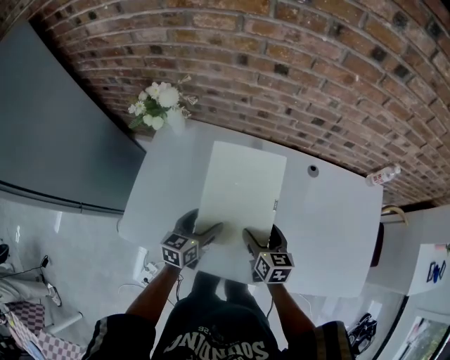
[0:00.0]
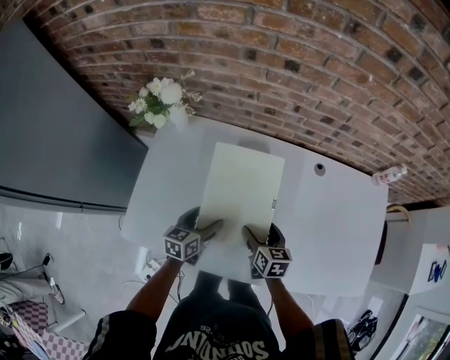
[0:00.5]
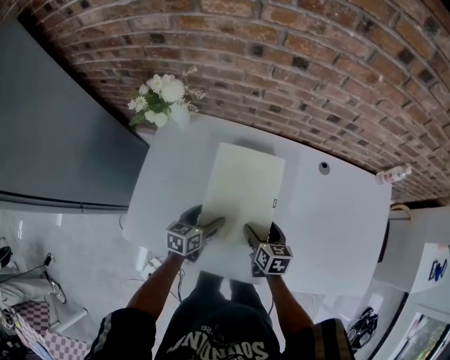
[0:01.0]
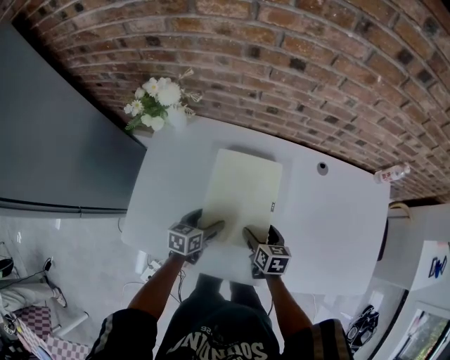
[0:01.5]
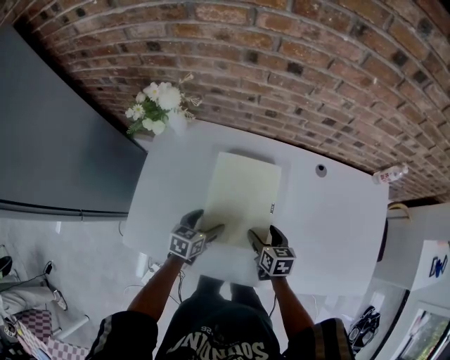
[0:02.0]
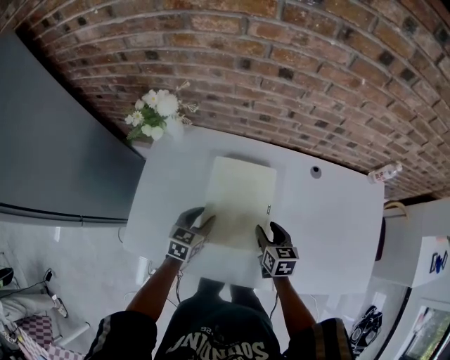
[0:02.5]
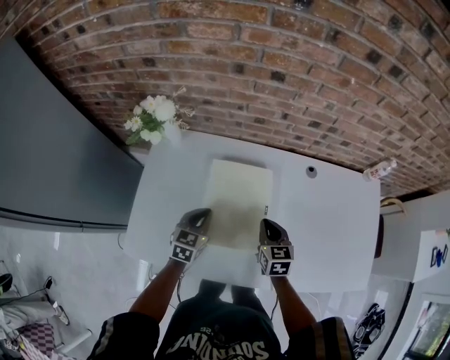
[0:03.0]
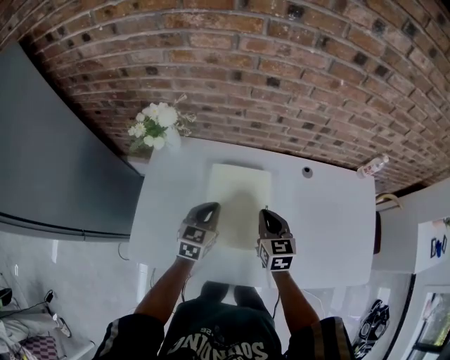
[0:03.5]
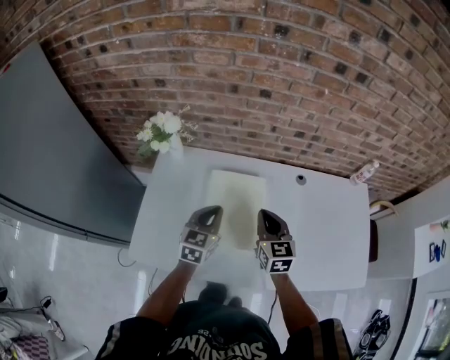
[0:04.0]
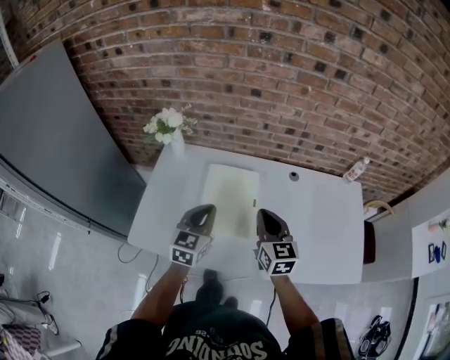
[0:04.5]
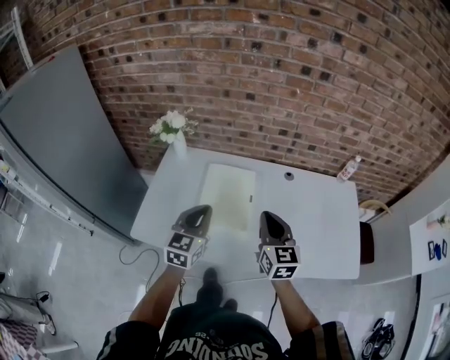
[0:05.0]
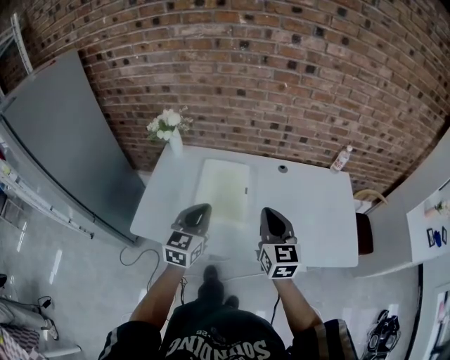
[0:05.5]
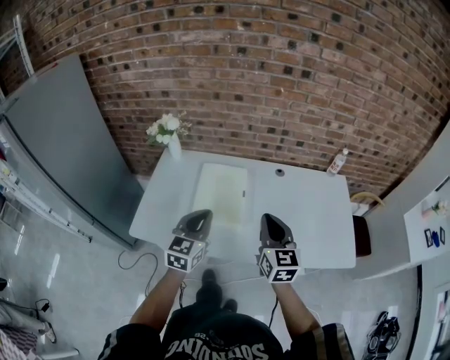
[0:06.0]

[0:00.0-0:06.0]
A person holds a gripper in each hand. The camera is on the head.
0:00.0 to 0:02.0: The grippers both shift downward by roughly 10 cm.
0:02.0 to 0:04.0: Both grippers move upward, about 20 cm. The left gripper swivels roughly 30 degrees, and closes its fingers, while the right gripper changes its angle by roughly 30 degrees, and closes up.
0:04.0 to 0:06.0: The right gripper goes approximately 25 cm backward, upward and to the right; the left gripper moves backward and upward, some 25 cm.

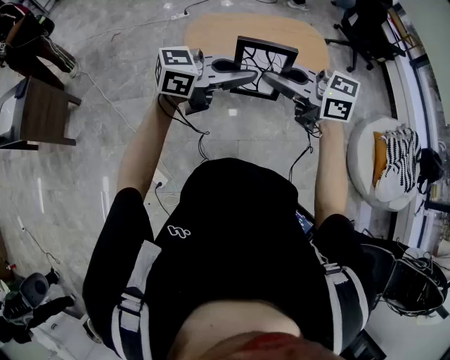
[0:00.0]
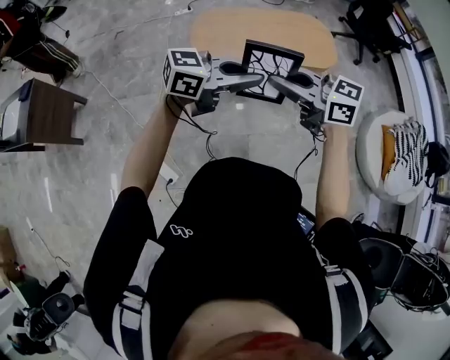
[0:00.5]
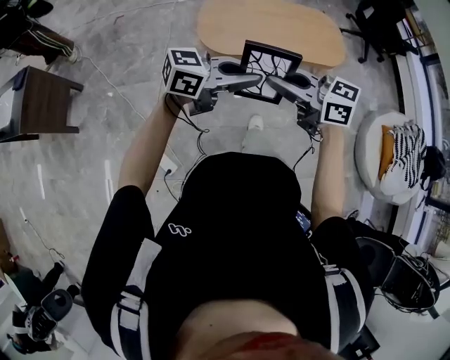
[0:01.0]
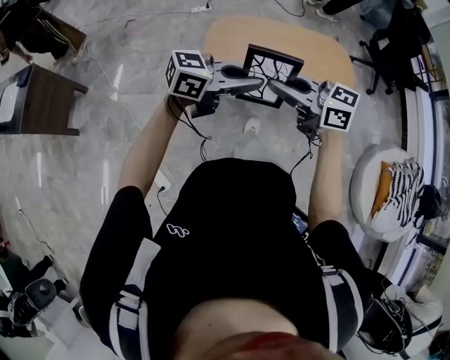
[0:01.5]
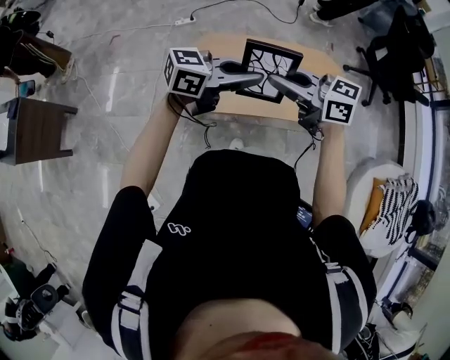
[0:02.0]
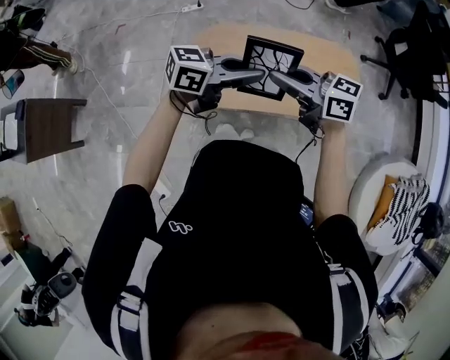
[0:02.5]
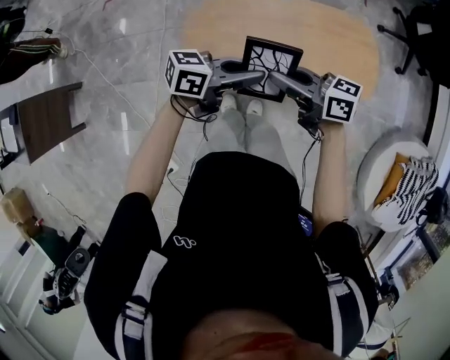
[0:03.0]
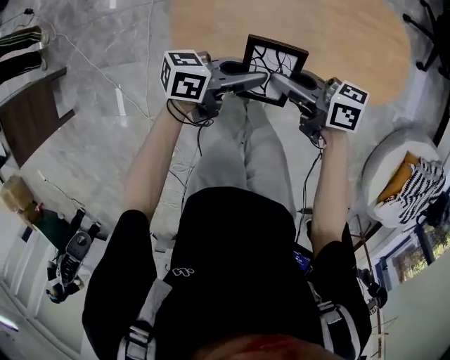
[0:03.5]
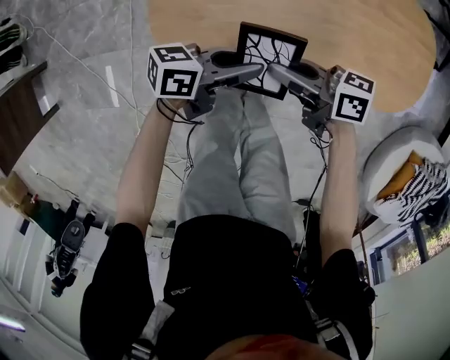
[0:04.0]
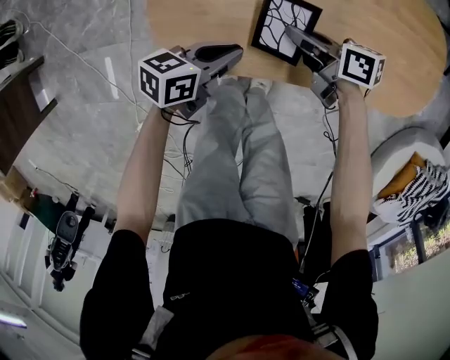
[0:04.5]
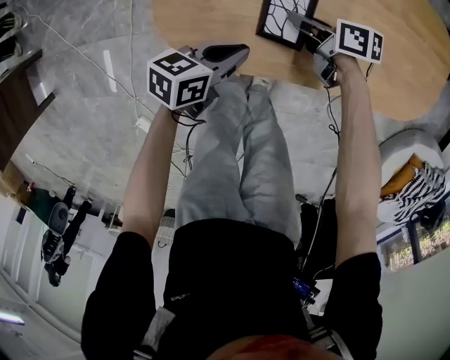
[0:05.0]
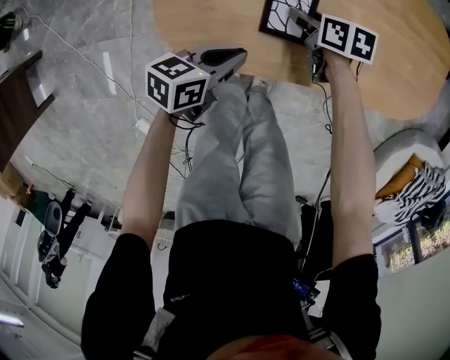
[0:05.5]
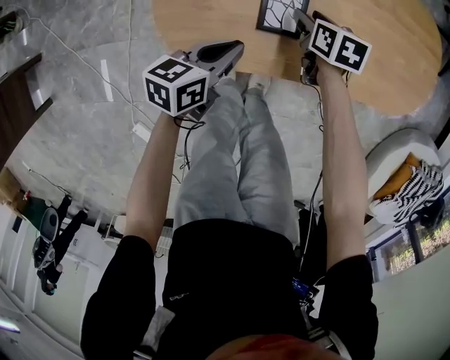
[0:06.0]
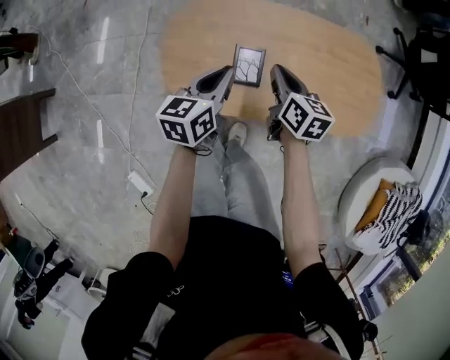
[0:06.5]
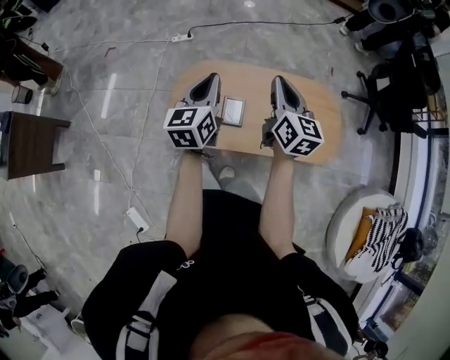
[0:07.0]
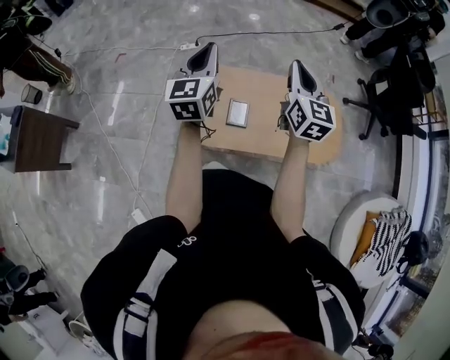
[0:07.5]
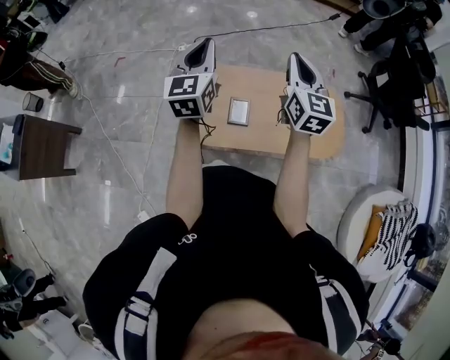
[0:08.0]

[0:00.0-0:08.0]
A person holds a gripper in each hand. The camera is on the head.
0:00.0 to 0:02.0: There are only small adjustments of the grippers.
0:02.0 to 0:04.0: The left gripper goes upward and returns, roughly 10 cm each way; the right gripper moves about 10 cm upward and comes back.
0:04.0 to 0:06.0: The left gripper shifts by some 10 cm, and turns by roughly 30 degrees; the right gripper heads downward, covering about 15 cm, tilts its fingers about 50 degrees downward, and opens its fingers.
0:06.0 to 0:08.0: The two grippers go about 60 cm upward. The right gripper tilts its fingers roughly 50 degrees upward, and closes its fingers. Meanwhile the left gripper tilts its fingers about 30 degrees upward.

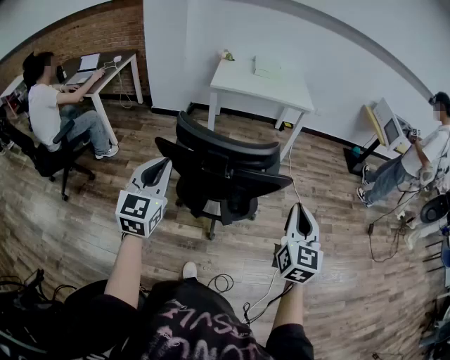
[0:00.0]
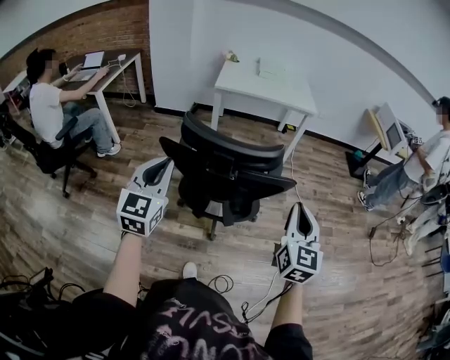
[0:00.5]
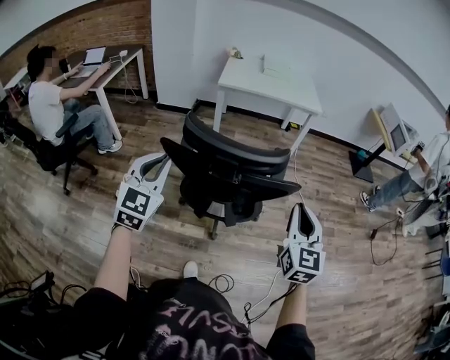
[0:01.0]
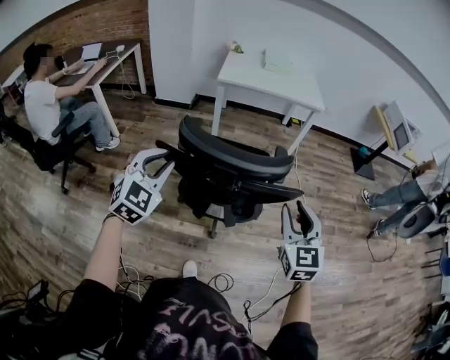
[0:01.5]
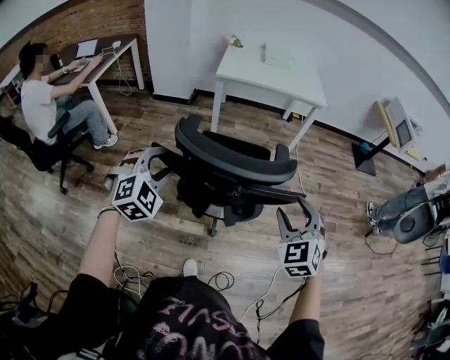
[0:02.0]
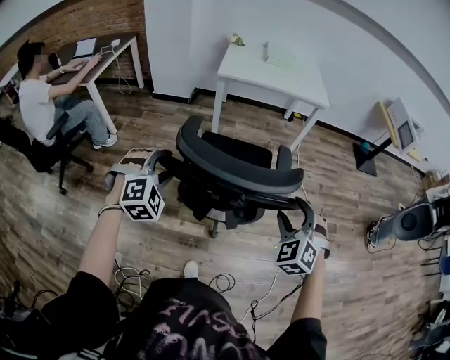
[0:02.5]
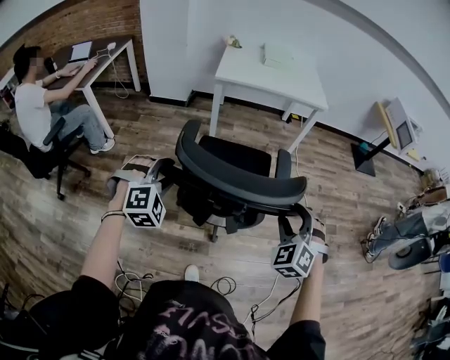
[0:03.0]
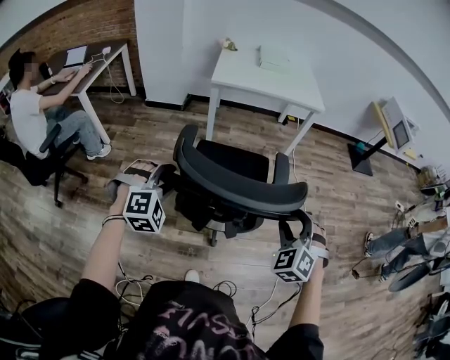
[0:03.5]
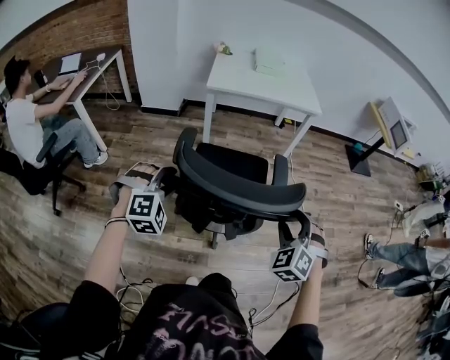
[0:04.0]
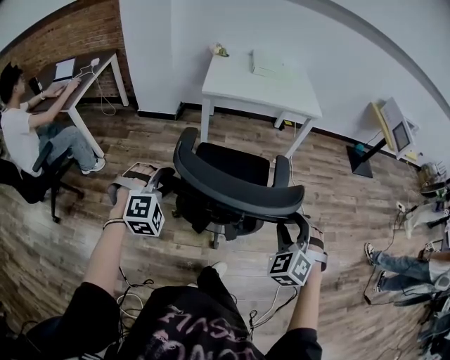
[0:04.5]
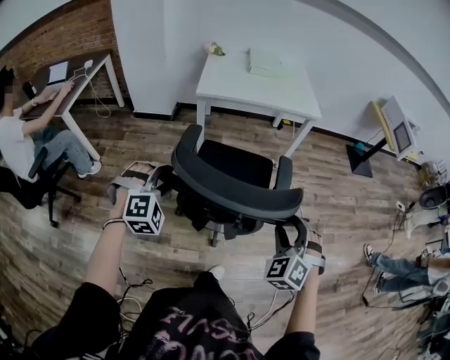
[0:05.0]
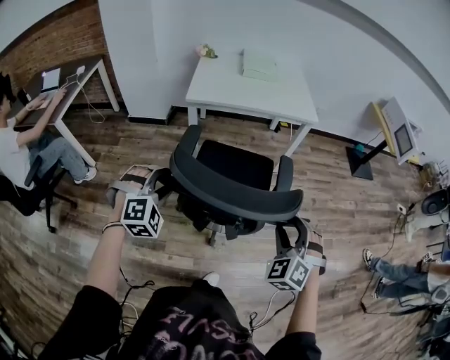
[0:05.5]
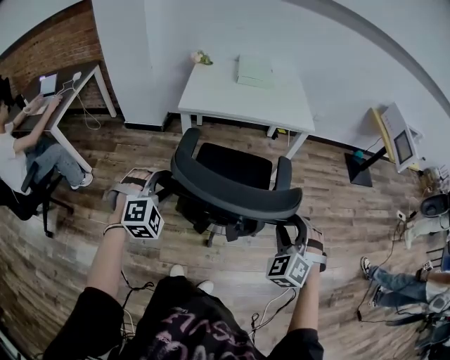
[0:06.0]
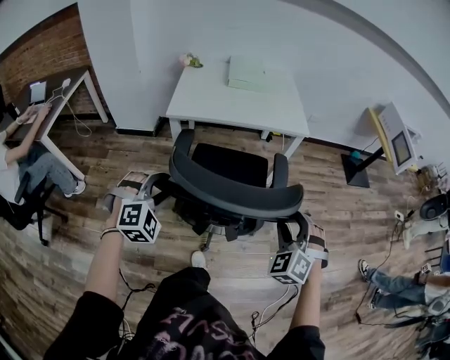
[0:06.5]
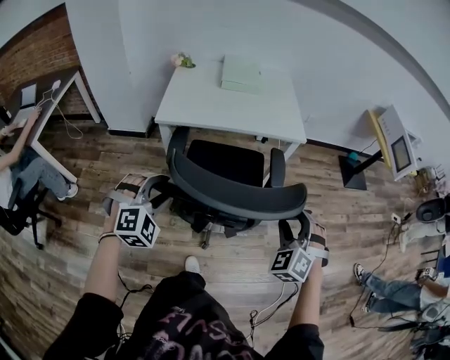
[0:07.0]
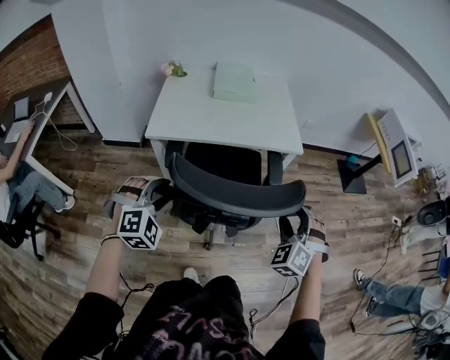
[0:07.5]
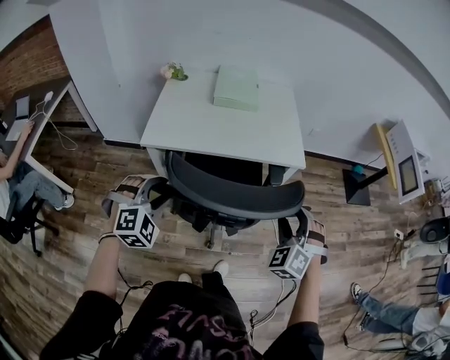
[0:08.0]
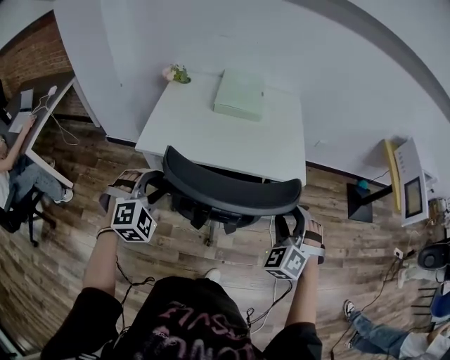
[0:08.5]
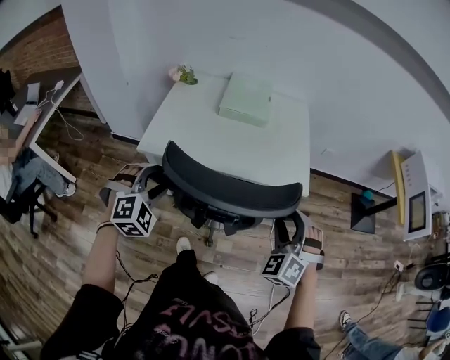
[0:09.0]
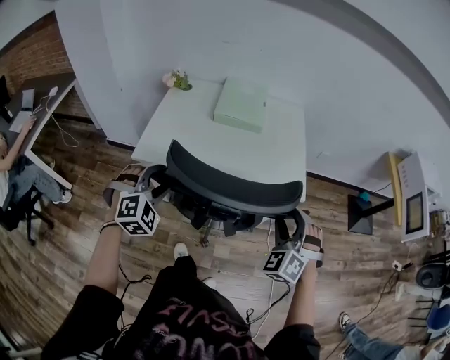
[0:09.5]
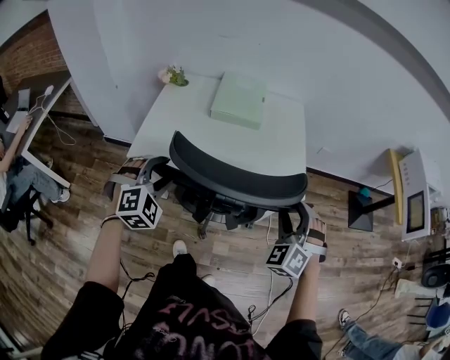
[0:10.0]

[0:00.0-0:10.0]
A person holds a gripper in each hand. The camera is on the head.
0:00.0 to 0:02.0: The left gripper is displaced downward and forward by approximately 15 cm, rotates around the line of its fingers by some 40 degrees, clockwise from behind, and opens its fingers. The right gripper is displaced forward, to the left and downward by some 10 cm, rotates around the line of its fingers by about 40 degrees, counterclockwise from behind, and opens its fingers.
0:02.0 to 0:04.0: The left gripper is displaced forward and downward by roughly 10 cm, and rotates about 20 degrees, while the right gripper goes approximately 5 cm forward, and turns by some 20 degrees.
0:04.0 to 0:06.0: The grippers both shift forward by approximately 25 cm.
0:06.0 to 0:08.0: Both grippers move forward, about 30 cm.
0:08.0 to 0:10.0: Both grippers move forward, roughly 20 cm.

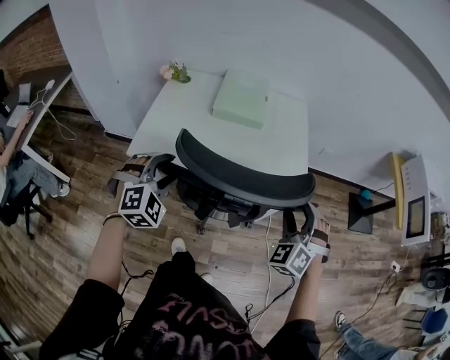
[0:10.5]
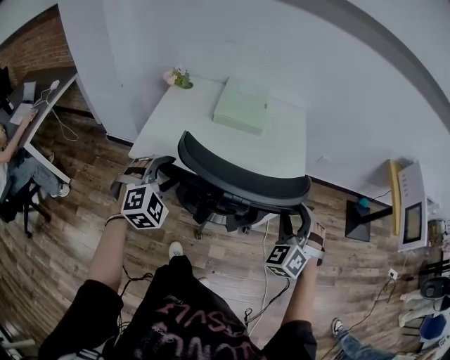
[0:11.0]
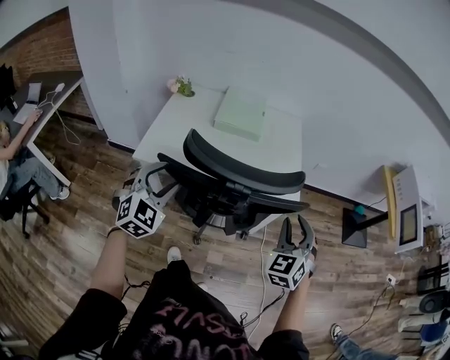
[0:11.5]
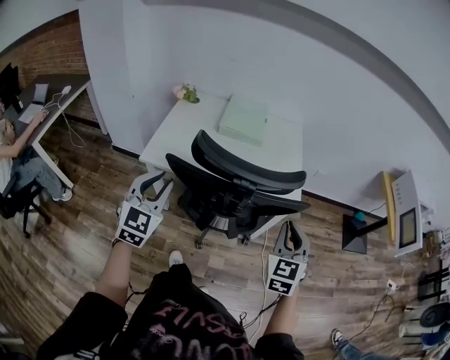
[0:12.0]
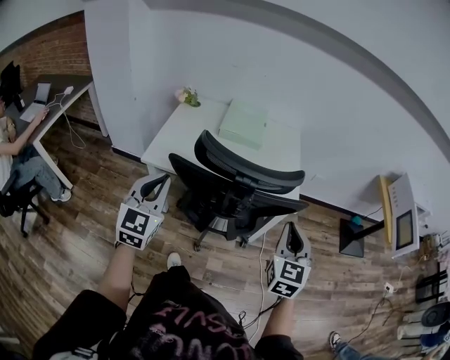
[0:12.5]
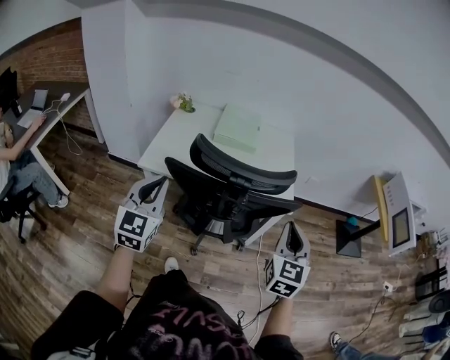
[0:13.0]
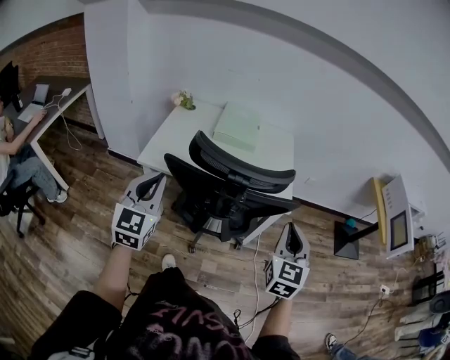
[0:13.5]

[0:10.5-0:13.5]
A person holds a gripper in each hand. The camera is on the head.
0:10.5 to 0:12.0: The right gripper shifts approximately 10 cm backward, rotates around the line of its fingers by about 40 degrees, clockwise from behind, and closes its fingers; the left gripper goes about 15 cm backward and upward, changes its angle by some 50 degrees, and closes up.
0:12.0 to 0:13.5: The right gripper changes place by roughly 5 cm, while the left gripper ends up about 5 cm from where it was, and closes.
